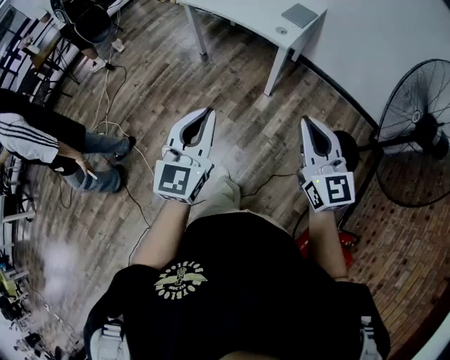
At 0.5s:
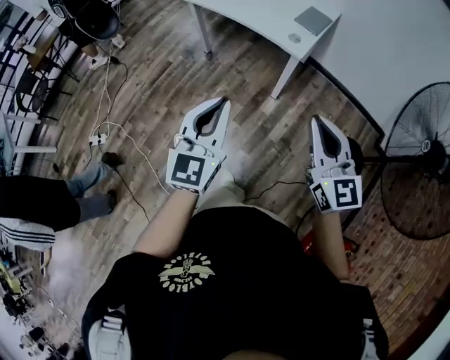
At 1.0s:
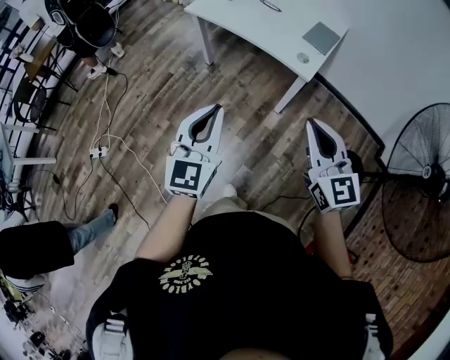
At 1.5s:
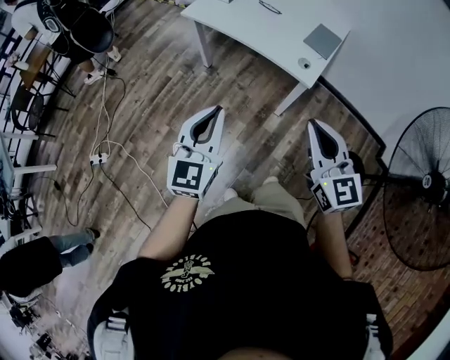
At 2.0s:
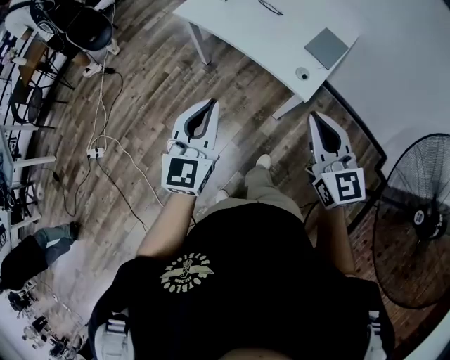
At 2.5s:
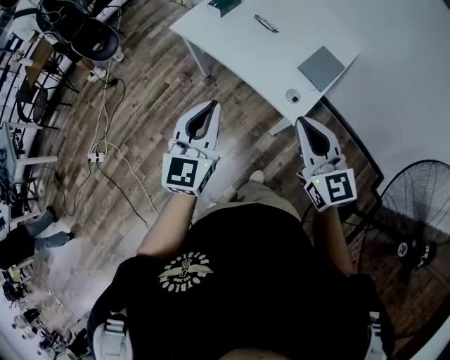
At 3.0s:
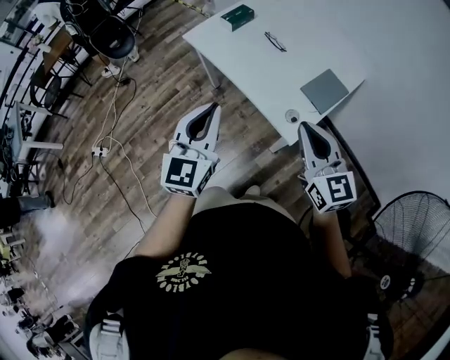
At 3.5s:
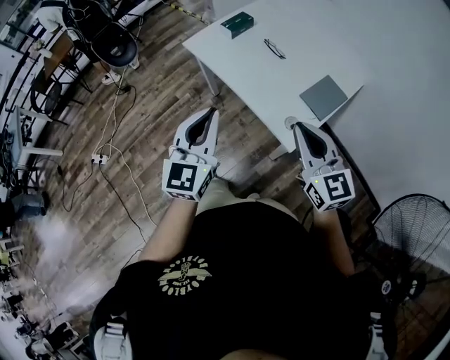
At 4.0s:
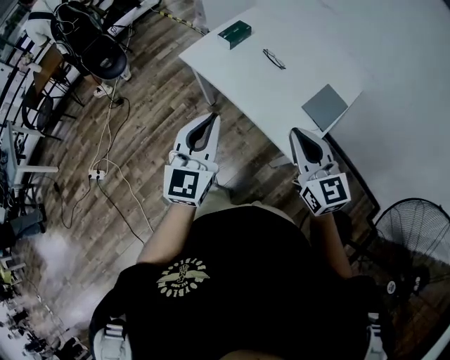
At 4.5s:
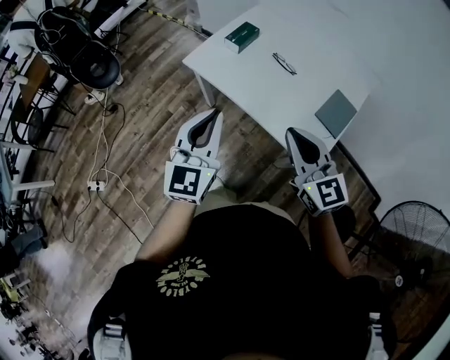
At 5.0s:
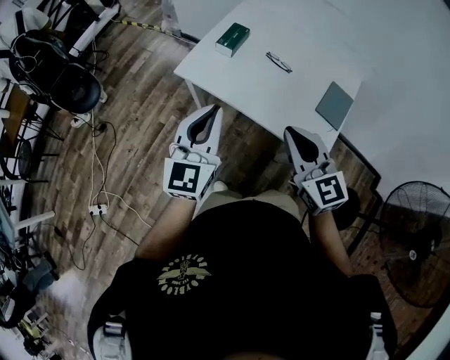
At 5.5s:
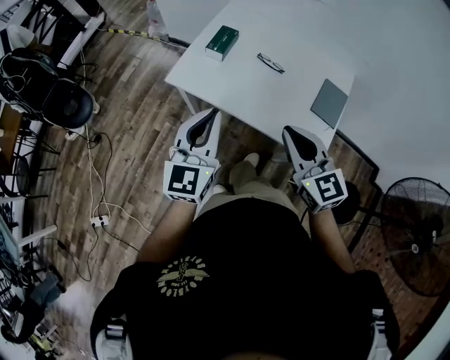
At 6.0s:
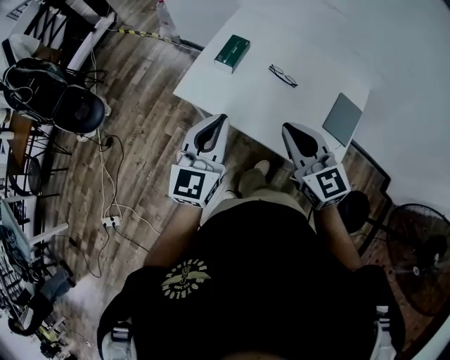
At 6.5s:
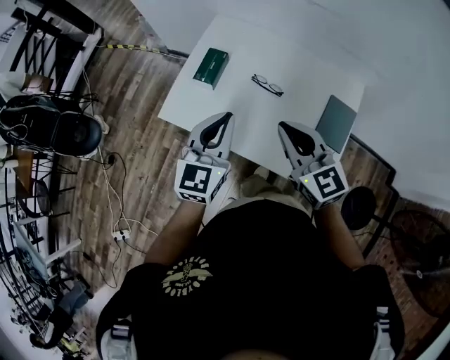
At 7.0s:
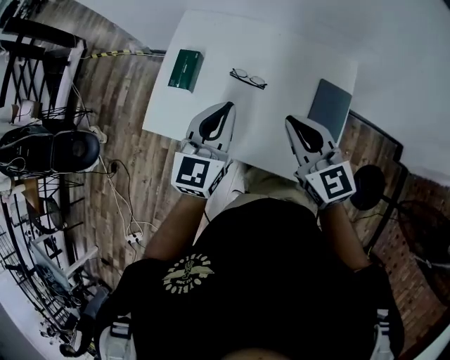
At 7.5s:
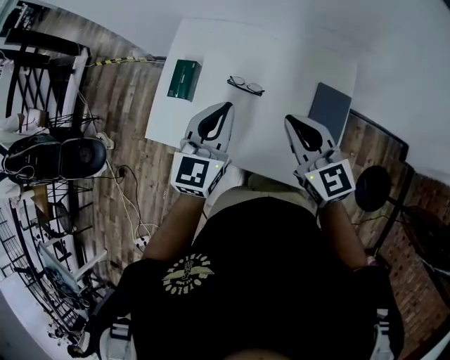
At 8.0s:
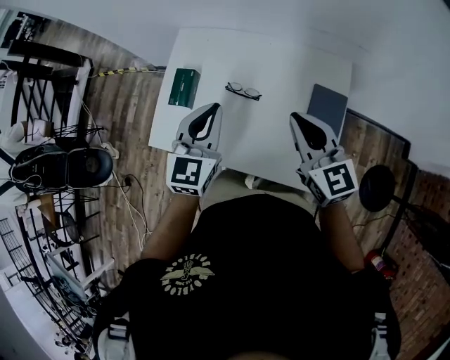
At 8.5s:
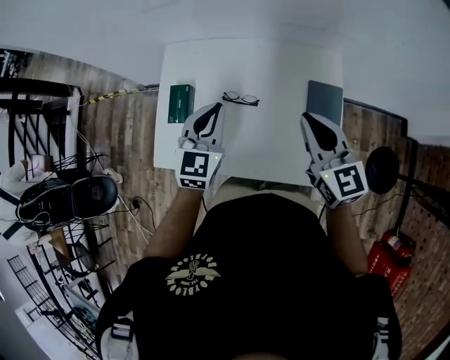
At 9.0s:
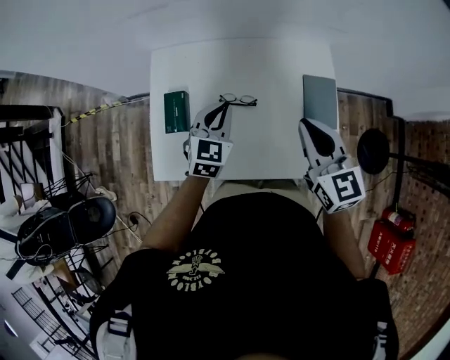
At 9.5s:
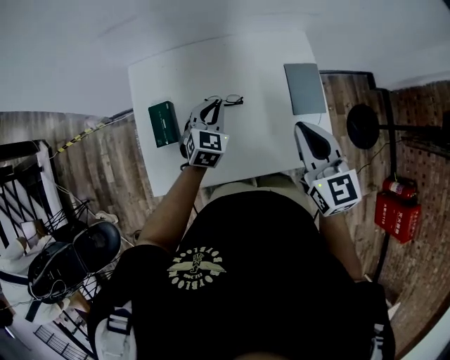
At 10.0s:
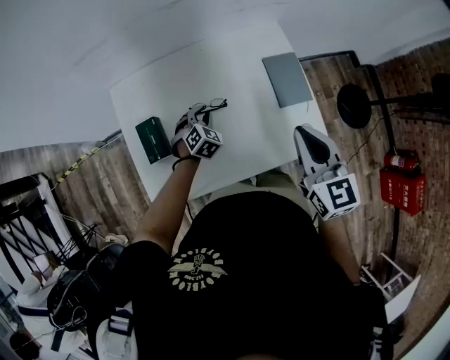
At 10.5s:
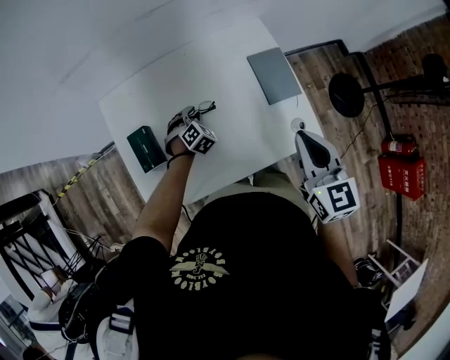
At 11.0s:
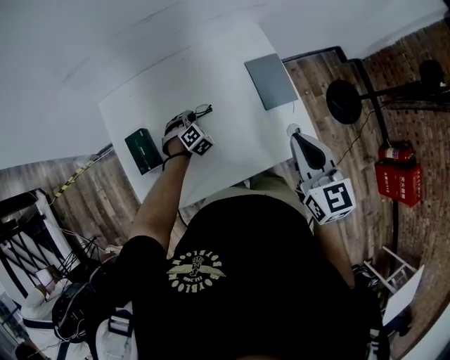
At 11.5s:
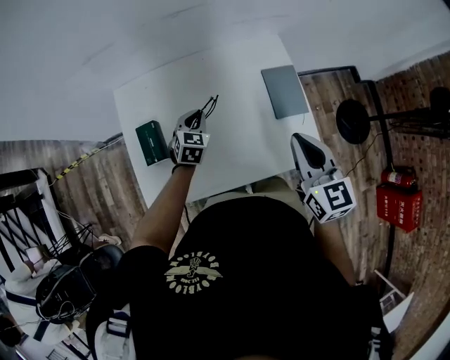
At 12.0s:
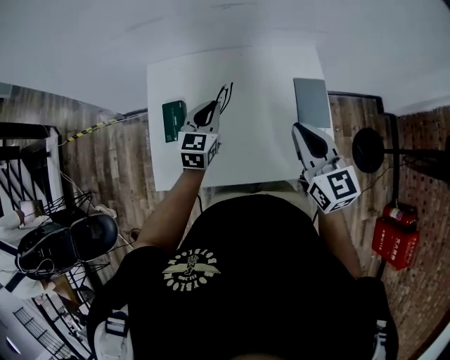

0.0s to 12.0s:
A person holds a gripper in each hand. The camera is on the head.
0.0s to 2.0s: The two grippers travel together, forward, some 40 cm.
2.0s to 4.0s: Both grippers travel together forward, some 15 cm.
4.0s to 6.0s: Both grippers travel together forward and to the left, approximately 25 cm. The left gripper turns by approximately 20 degrees.
6.0s to 8.0s: The right gripper moves to the right and forward, about 25 cm, while the left gripper goes about 25 cm forward and to the right.
8.0s to 10.0s: The left gripper goes roughly 30 cm downward, and tilts its fingers roughly 30 degrees downward; the right gripper shifts by roughly 5 cm, and swivels roughly 40 degrees.
10.0s to 12.0s: The left gripper heads upward, covering about 20 cm, and changes its angle by some 50 degrees.

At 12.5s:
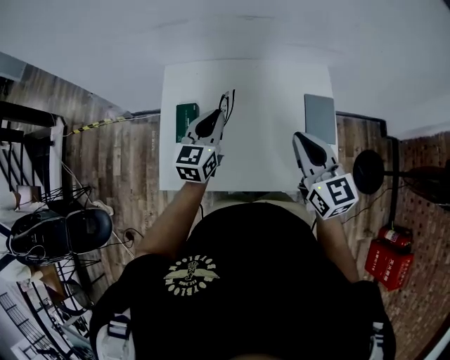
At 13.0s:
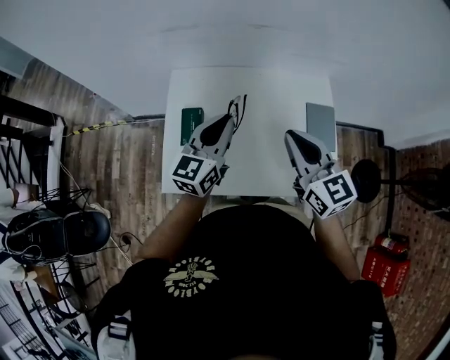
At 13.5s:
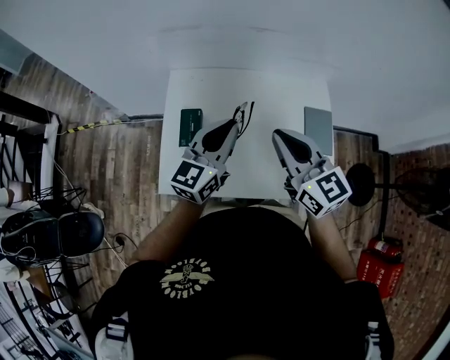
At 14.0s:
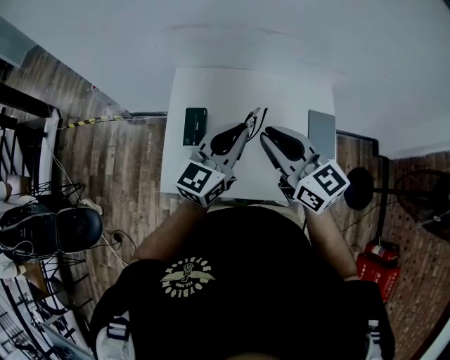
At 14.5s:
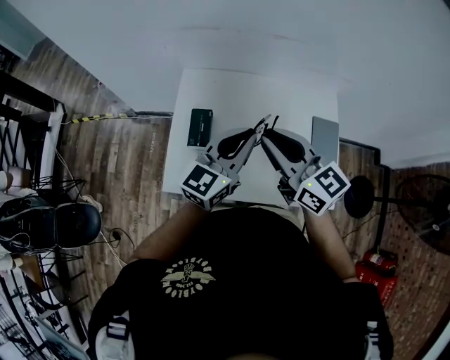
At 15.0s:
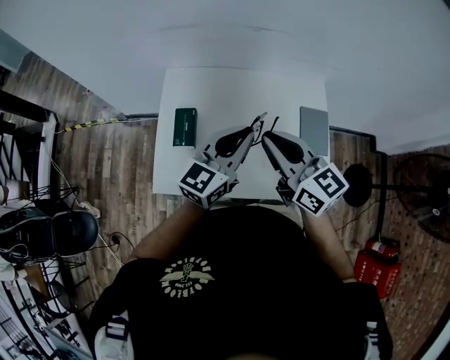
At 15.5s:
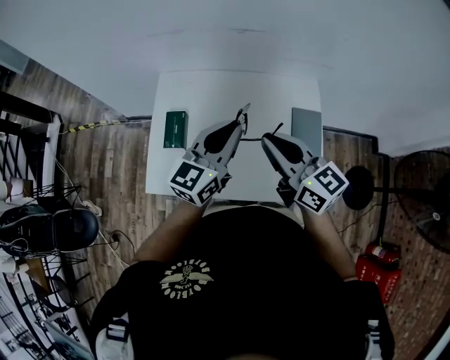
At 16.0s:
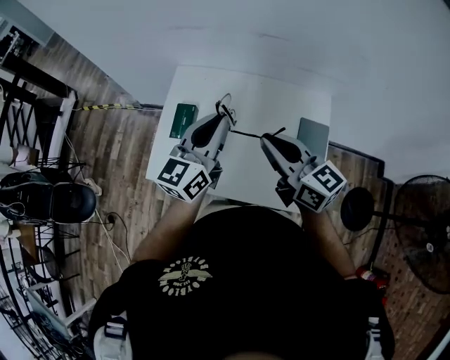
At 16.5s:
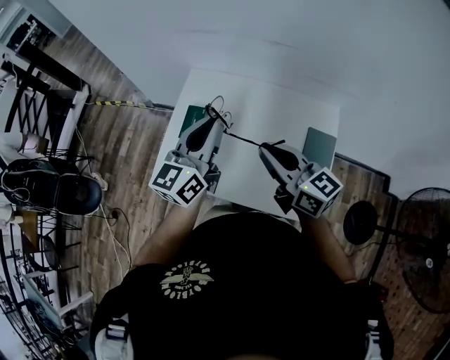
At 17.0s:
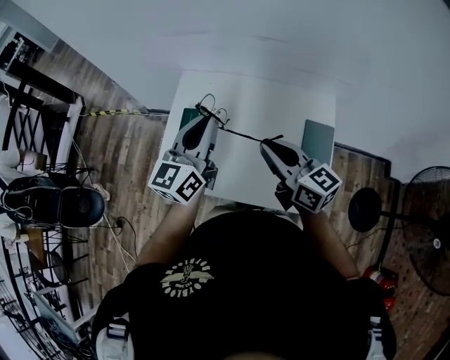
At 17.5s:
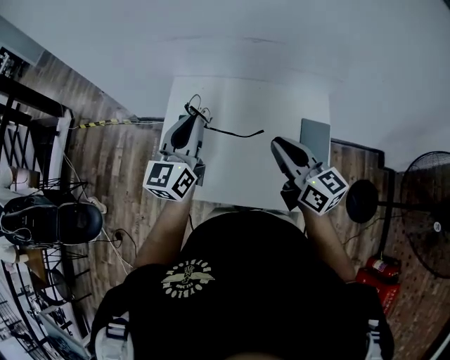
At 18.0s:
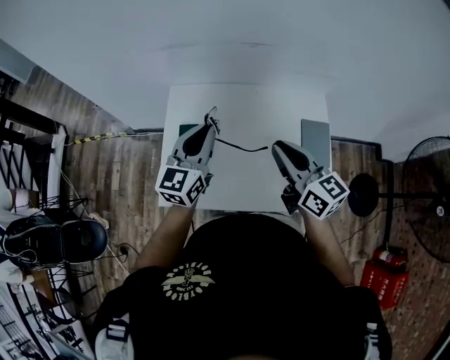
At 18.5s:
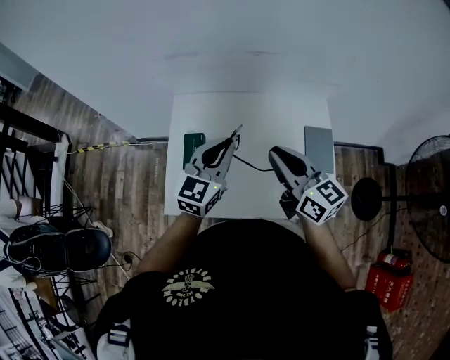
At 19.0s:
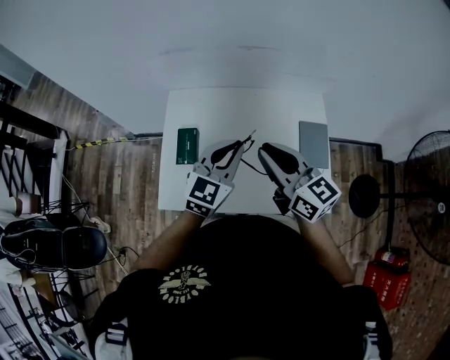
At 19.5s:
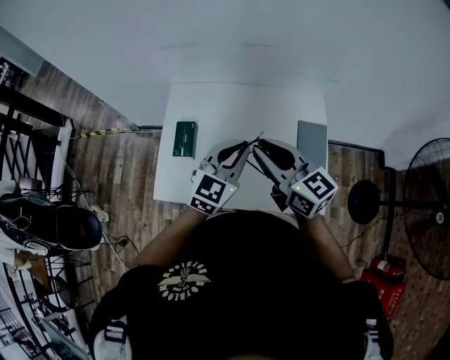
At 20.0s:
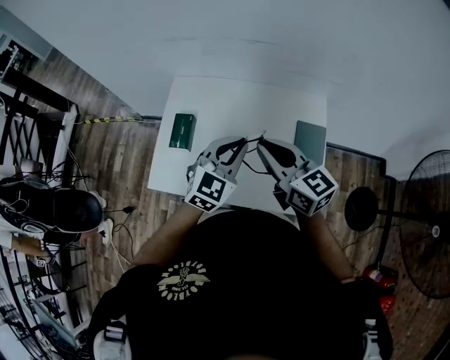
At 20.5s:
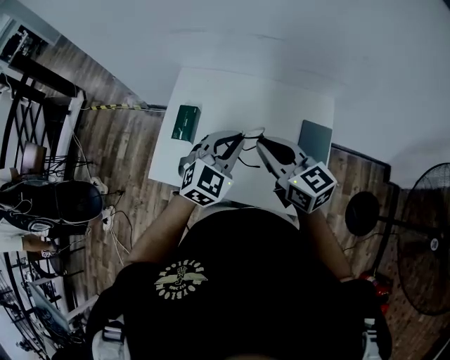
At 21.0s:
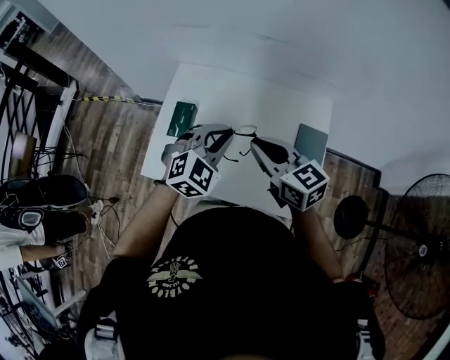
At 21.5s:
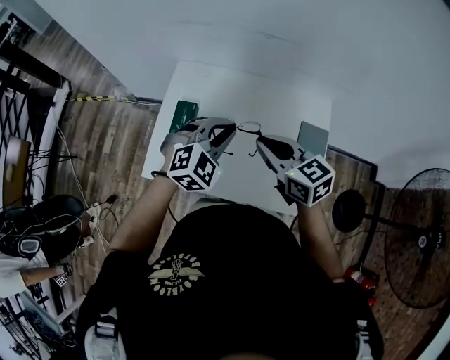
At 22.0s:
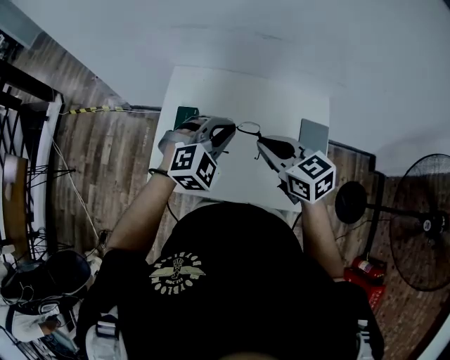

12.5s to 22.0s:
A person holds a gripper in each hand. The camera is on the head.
12.5s to 14.5s: The left gripper is displaced upward and backward by about 10 cm; the right gripper moves to the left, approximately 15 cm, and rotates about 20 degrees.
14.5s to 16.5s: The left gripper goes to the right and returns, roughly 10 cm each way, and changes its angle by about 20 degrees. The right gripper is displaced to the right by roughly 10 cm.
16.5s to 18.0s: The right gripper changes its angle by approximately 20 degrees. The left gripper moves downward and forward, about 10 cm.
18.0s to 20.0s: The left gripper shifts about 15 cm to the right and backward, and turns by about 30 degrees.
20.0s to 22.0s: The left gripper travels to the left by about 10 cm, and changes its angle by approximately 40 degrees, while the right gripper goes approximately 10 cm to the left and downward, and swivels some 20 degrees.

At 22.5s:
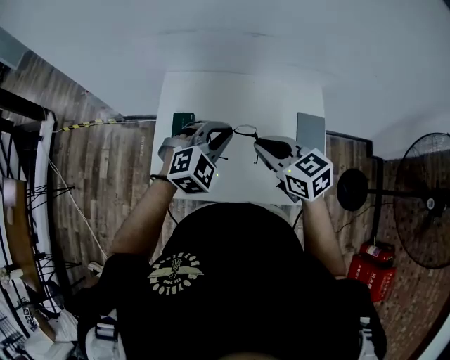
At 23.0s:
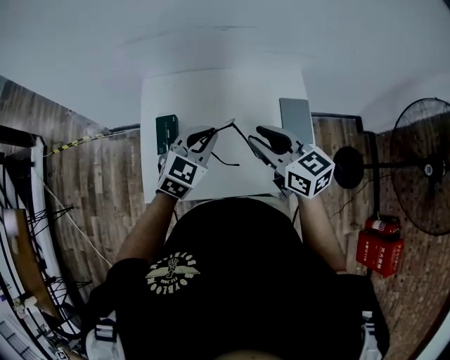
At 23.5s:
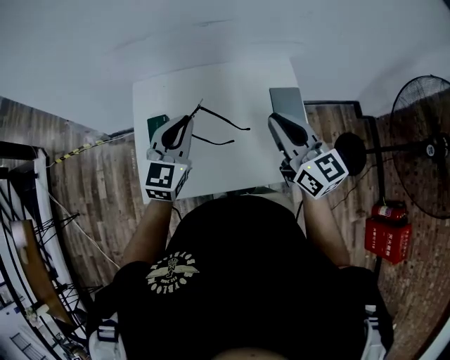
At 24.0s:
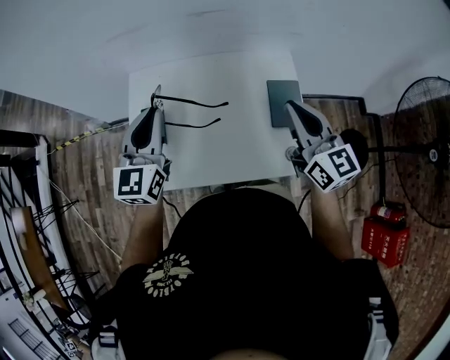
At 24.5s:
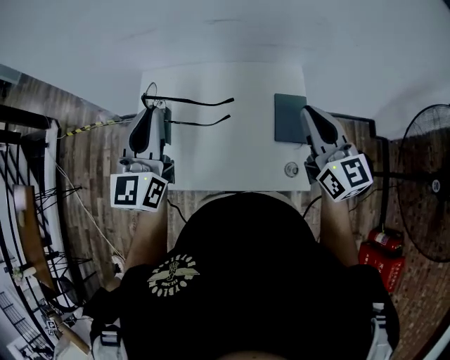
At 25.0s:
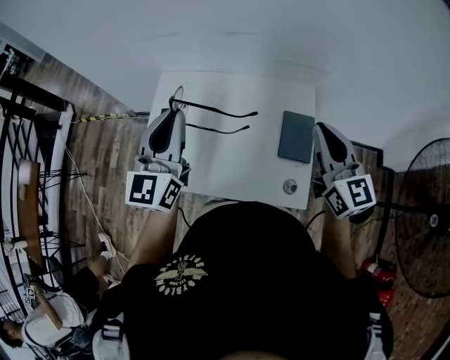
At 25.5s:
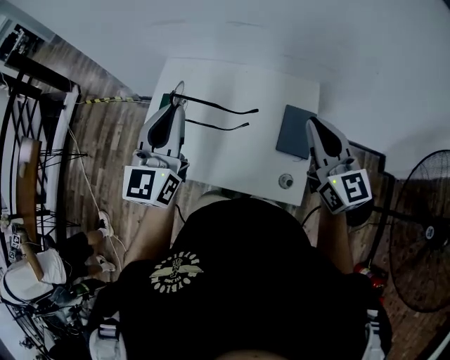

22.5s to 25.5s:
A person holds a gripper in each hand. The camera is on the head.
22.5s to 24.0s: The right gripper is displaced to the right and upward by some 20 cm, turns by some 40 degrees, and opens, then closes again, while the left gripper goes some 10 cm upward, and tips its fingers upward by some 30 degrees.
24.0s to 25.5s: The right gripper moves to the right, about 5 cm. The left gripper is displaced to the right, upward and backward by about 10 cm.

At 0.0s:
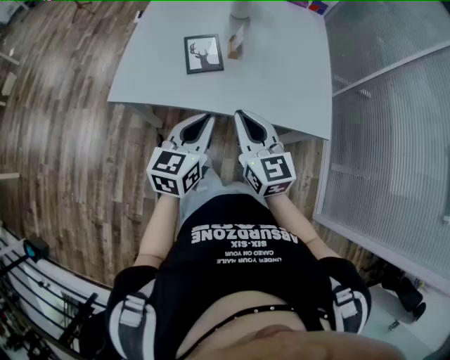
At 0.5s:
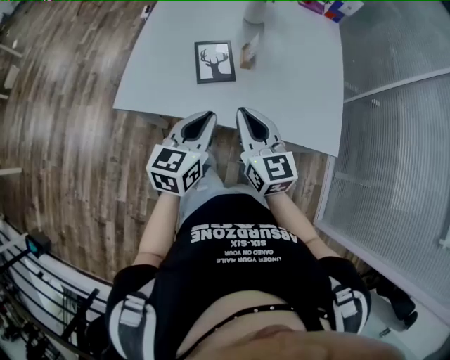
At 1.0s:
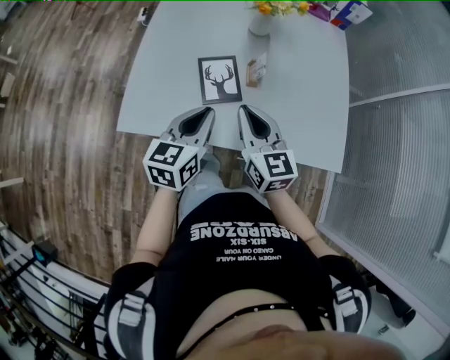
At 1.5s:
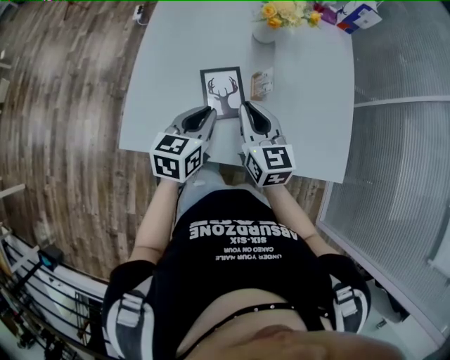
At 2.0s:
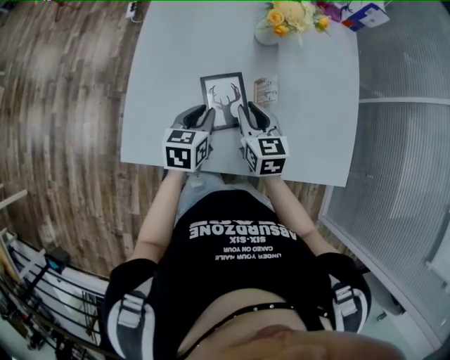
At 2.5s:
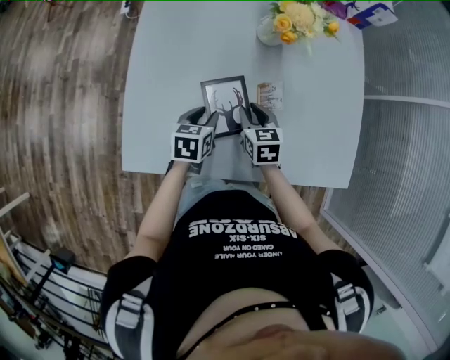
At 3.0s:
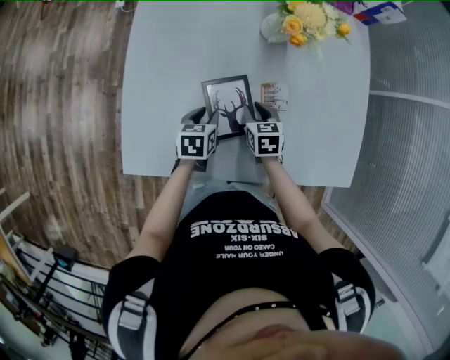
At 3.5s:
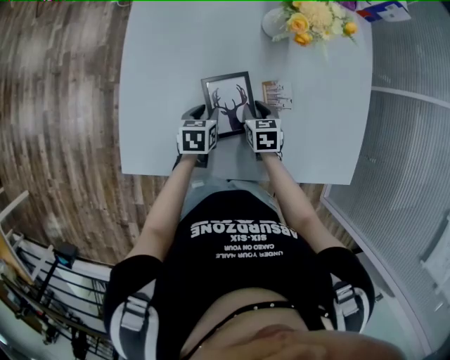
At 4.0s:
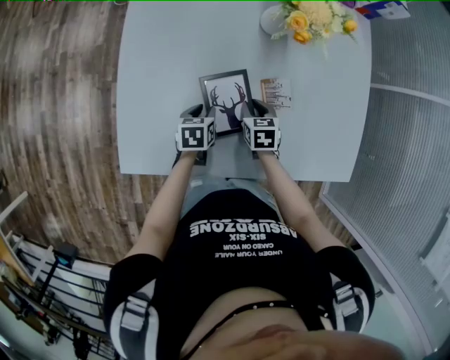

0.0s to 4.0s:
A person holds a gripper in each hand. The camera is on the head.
0.0s to 2.0s: Both grippers travel together forward, some 35 cm. The right gripper turns by roughly 20 degrees. The left gripper rotates approximately 20 degrees.
2.0s to 4.0s: The two grippers go some 15 cm downward. The right gripper turns by some 30 degrees. The left gripper changes its angle by approximately 20 degrees.
